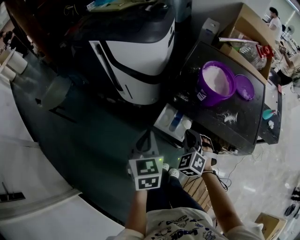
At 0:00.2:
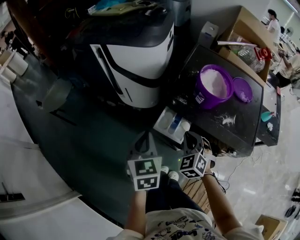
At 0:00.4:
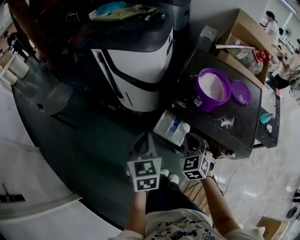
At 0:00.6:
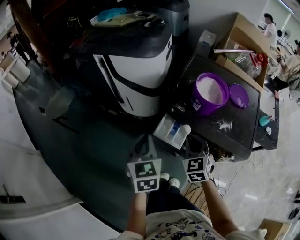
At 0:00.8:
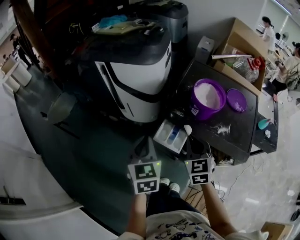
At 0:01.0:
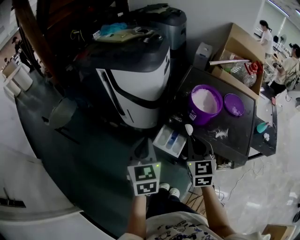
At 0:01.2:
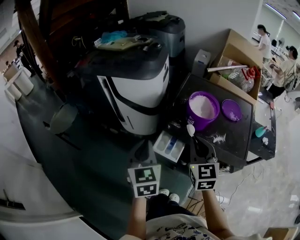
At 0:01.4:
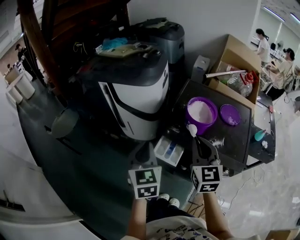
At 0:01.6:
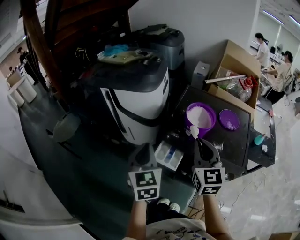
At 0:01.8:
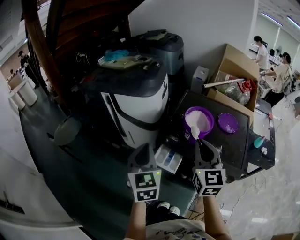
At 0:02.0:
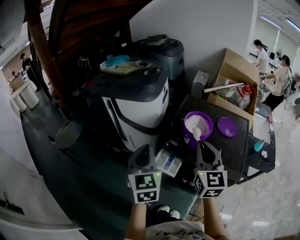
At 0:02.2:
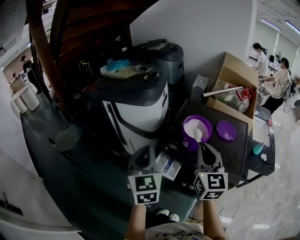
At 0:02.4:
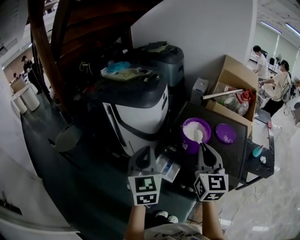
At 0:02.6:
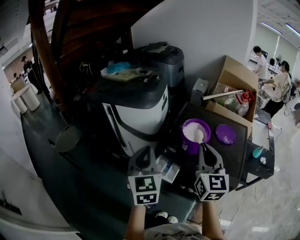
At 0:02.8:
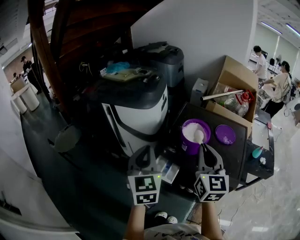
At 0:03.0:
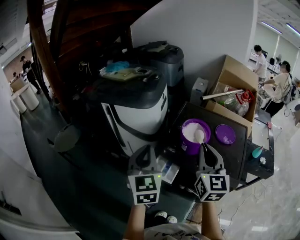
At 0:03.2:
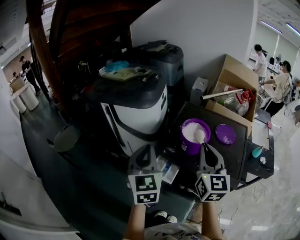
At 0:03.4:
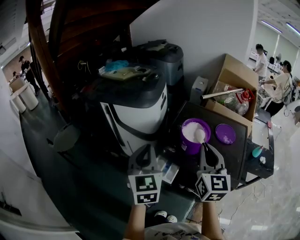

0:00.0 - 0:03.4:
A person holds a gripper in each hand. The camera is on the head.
0:00.0 - 0:01.6: The left gripper goes about 15 cm upward. The right gripper goes approximately 25 cm upward, and rolls clockwise, seen from behind, by roughly 50 degrees.
0:01.6 - 0:03.4: Both grippers move upward, about 5 cm.

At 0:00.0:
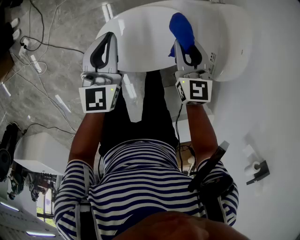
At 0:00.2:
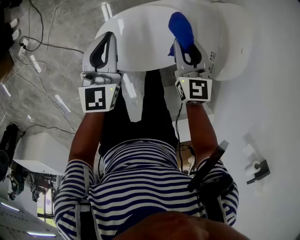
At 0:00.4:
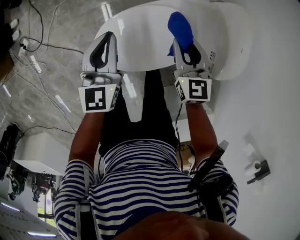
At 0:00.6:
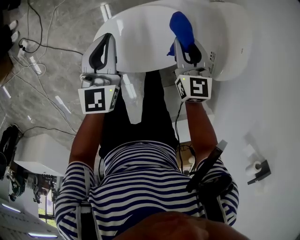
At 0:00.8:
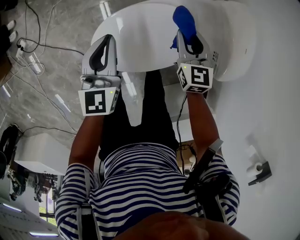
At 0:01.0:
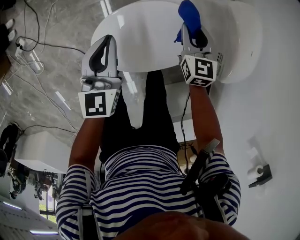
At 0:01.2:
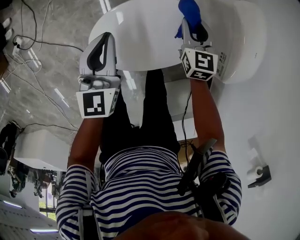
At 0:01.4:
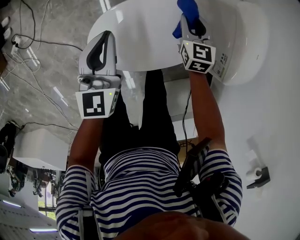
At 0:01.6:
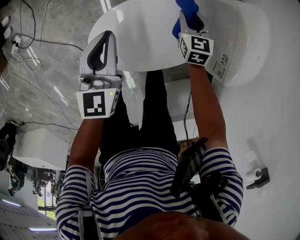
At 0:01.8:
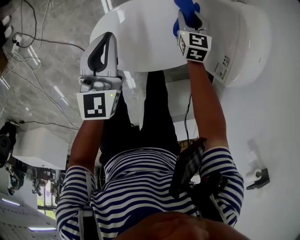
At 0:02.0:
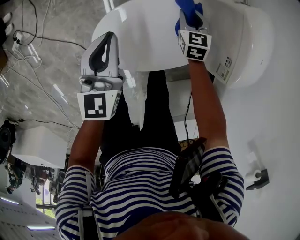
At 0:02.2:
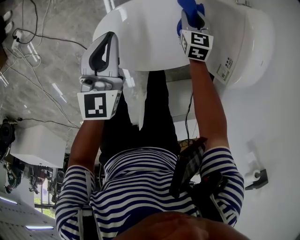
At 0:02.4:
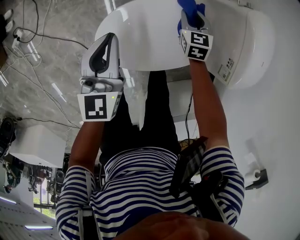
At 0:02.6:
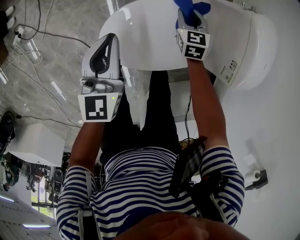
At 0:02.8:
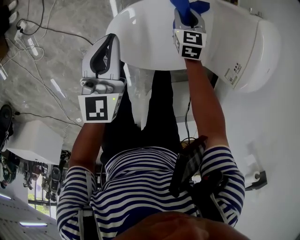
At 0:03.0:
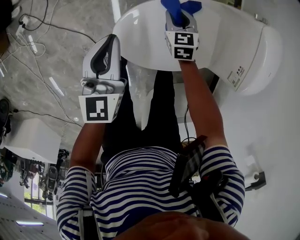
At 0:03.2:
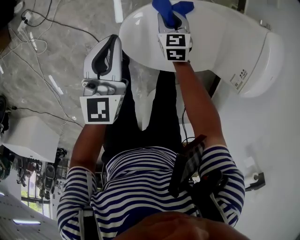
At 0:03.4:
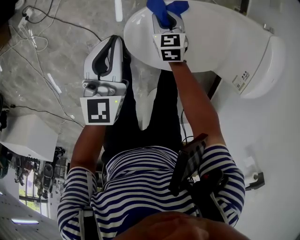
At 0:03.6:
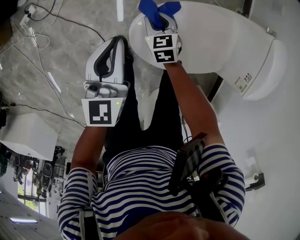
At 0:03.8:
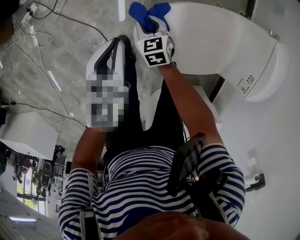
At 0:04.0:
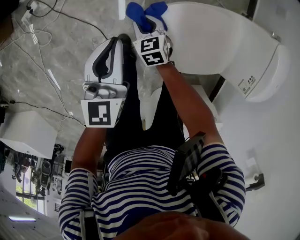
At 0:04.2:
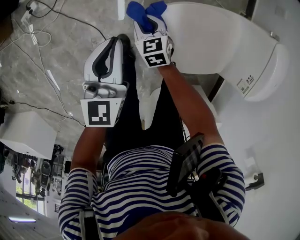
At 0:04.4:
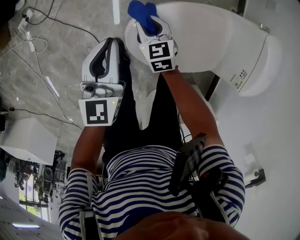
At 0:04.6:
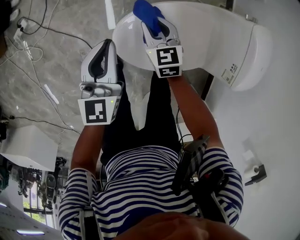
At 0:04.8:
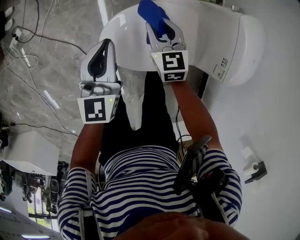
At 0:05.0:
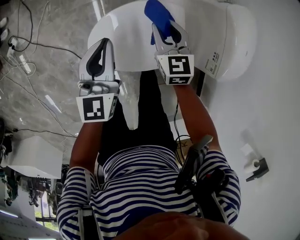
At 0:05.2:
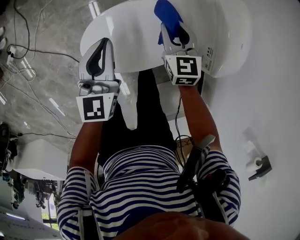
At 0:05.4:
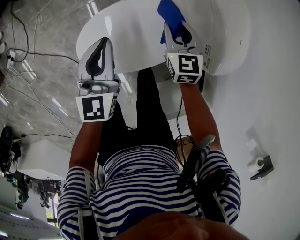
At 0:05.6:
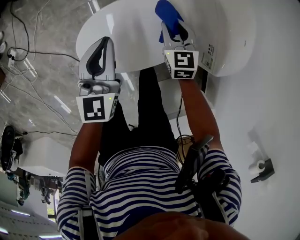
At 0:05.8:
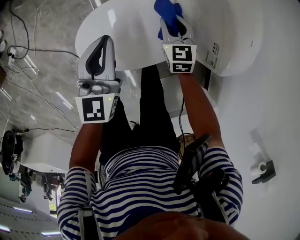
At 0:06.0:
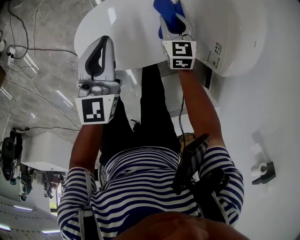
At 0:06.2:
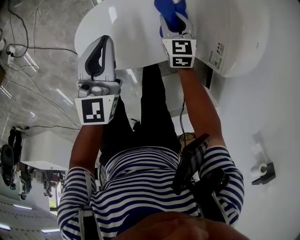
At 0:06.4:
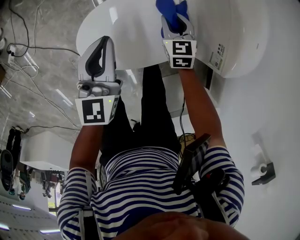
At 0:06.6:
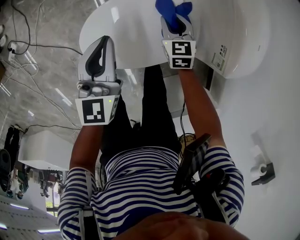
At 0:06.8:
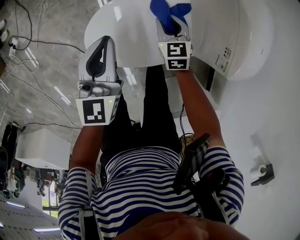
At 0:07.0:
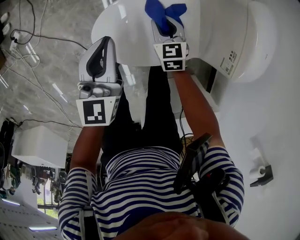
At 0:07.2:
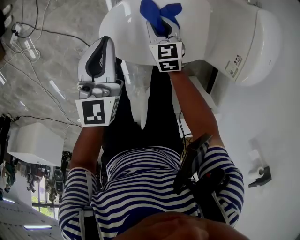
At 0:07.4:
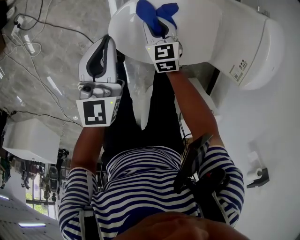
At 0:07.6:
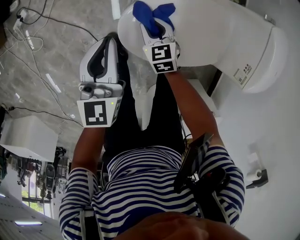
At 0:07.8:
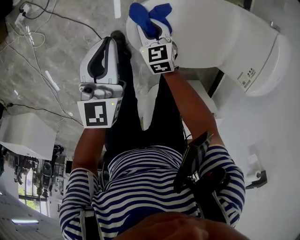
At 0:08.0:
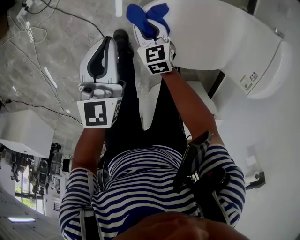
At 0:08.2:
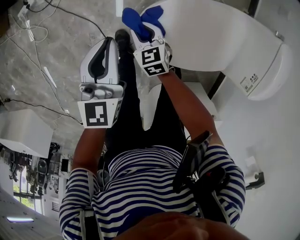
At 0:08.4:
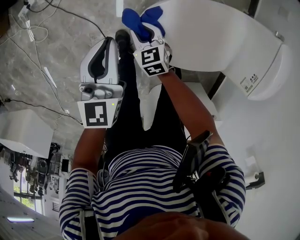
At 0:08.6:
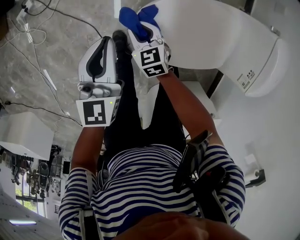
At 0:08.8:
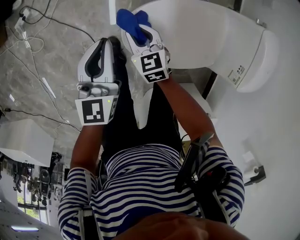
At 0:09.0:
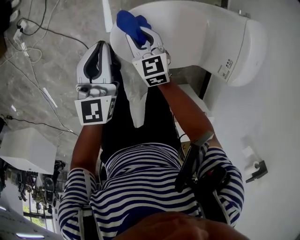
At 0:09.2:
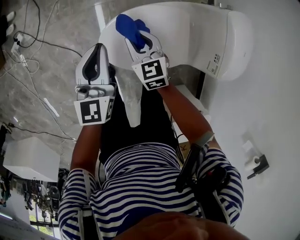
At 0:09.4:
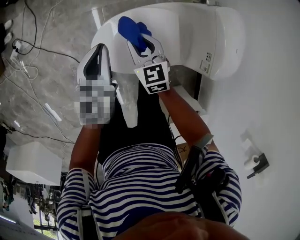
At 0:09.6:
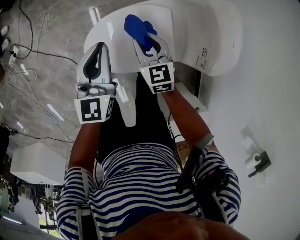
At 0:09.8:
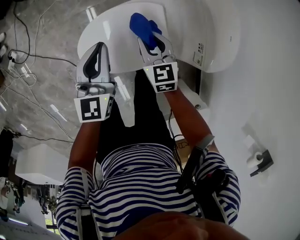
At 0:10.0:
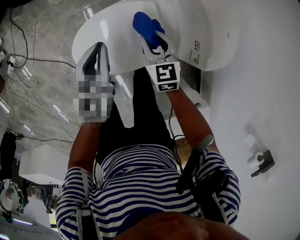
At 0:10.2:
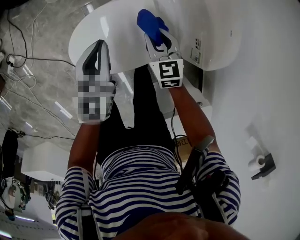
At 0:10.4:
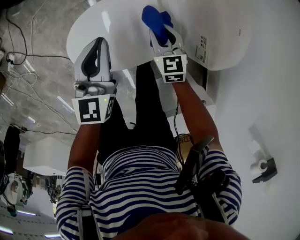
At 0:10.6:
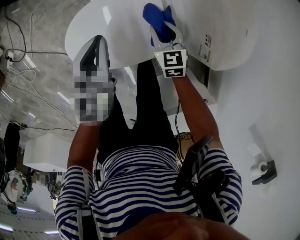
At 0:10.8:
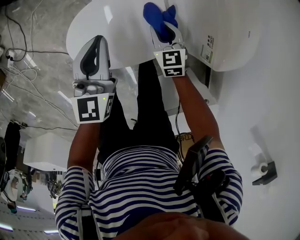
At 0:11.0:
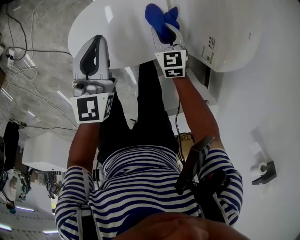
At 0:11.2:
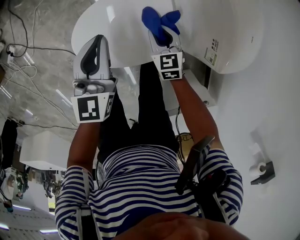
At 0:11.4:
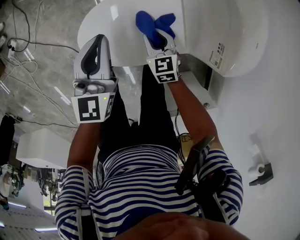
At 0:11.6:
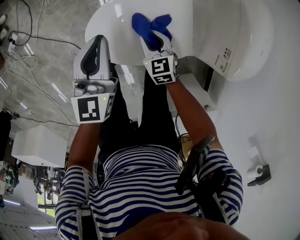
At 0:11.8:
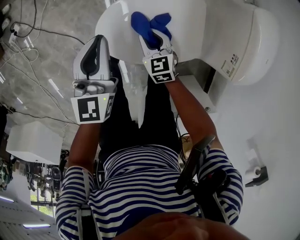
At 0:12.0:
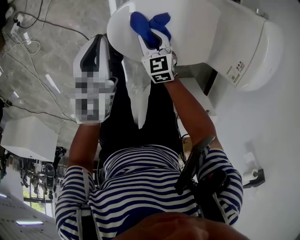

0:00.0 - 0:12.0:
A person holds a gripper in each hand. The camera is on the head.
0:00.0 - 0:01.6: The left gripper goes some 10 cm downward; the right gripper moves downward, approximately 20 cm.
0:01.6 - 0:03.0: The right gripper shifts some 20 cm to the left. Meanwhile the left gripper shifts approximately 10 cm to the left.
0:03.0 - 0:04.4: The left gripper heads to the left, covering roughly 10 cm. The right gripper is displaced to the left by approximately 20 cm.
0:04.4 - 0:06.0: The grippers both shift to the right by some 30 cm. The right gripper swivels some 20 degrees.
0:06.0 - 0:07.6: Both grippers move to the left, approximately 25 cm. The right gripper changes its angle by approximately 20 degrees.
0:07.6 - 0:09.0: The right gripper shifts roughly 10 cm upward. The left gripper goes some 5 cm upward, and moves roughly 10 cm to the left and comes back.
0:09.0 - 0:10.4: Both grippers travel together to the right, approximately 30 cm.
0:10.4 - 0:12.0: Both grippers move to the left, some 25 cm. The right gripper turns by roughly 20 degrees.

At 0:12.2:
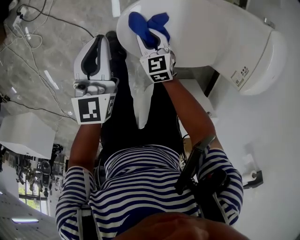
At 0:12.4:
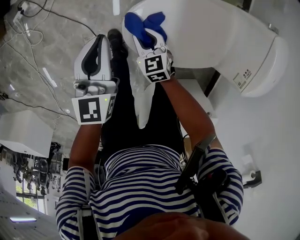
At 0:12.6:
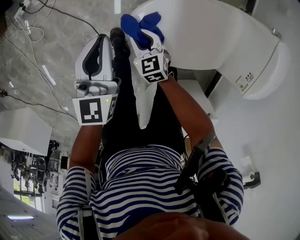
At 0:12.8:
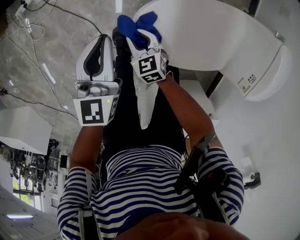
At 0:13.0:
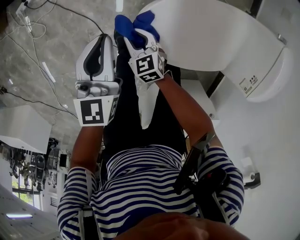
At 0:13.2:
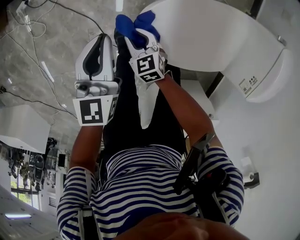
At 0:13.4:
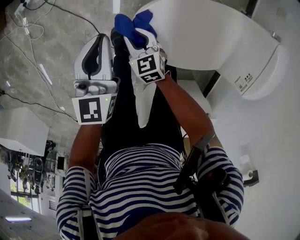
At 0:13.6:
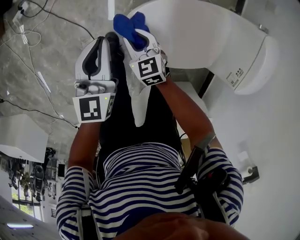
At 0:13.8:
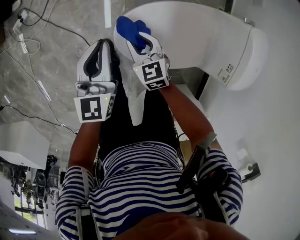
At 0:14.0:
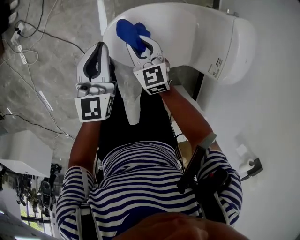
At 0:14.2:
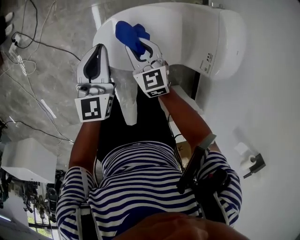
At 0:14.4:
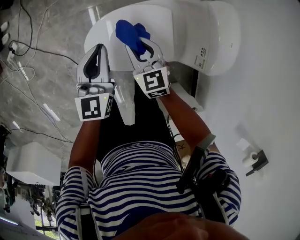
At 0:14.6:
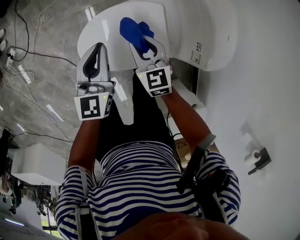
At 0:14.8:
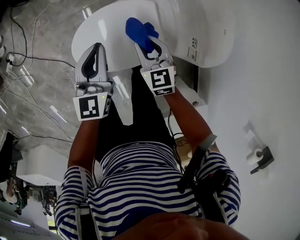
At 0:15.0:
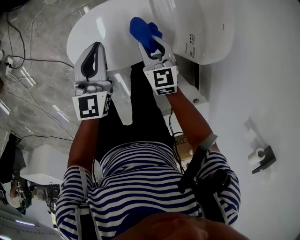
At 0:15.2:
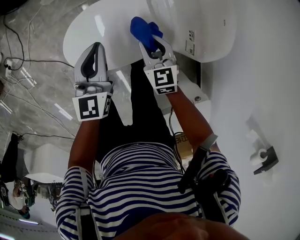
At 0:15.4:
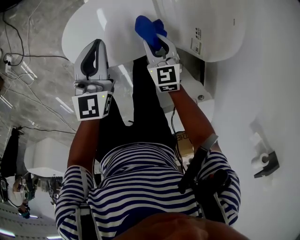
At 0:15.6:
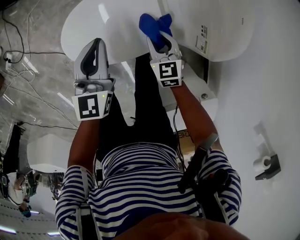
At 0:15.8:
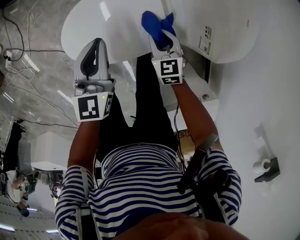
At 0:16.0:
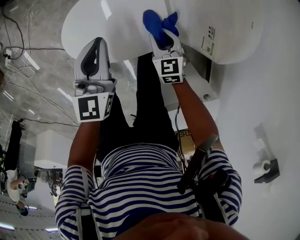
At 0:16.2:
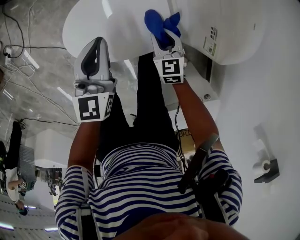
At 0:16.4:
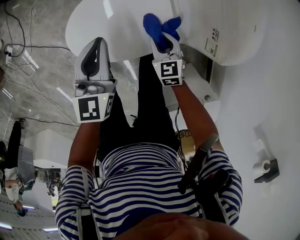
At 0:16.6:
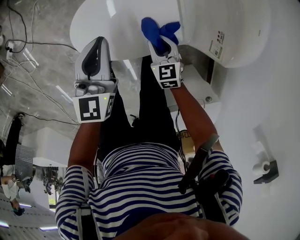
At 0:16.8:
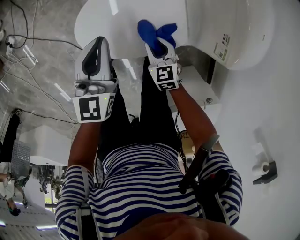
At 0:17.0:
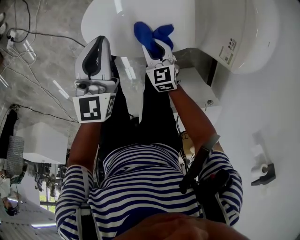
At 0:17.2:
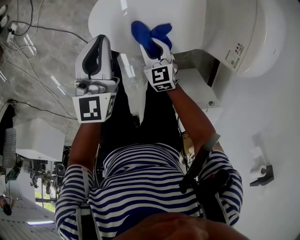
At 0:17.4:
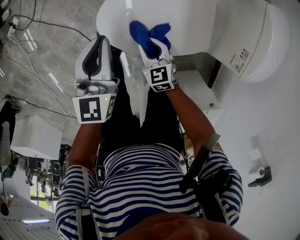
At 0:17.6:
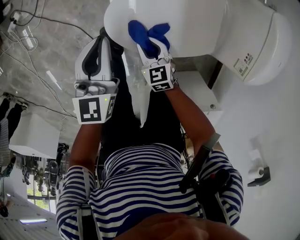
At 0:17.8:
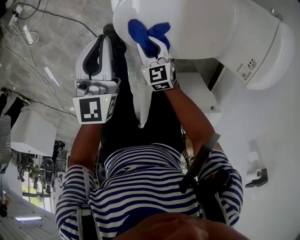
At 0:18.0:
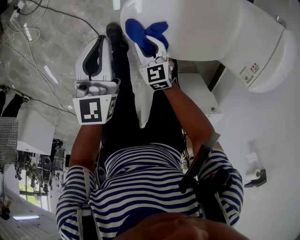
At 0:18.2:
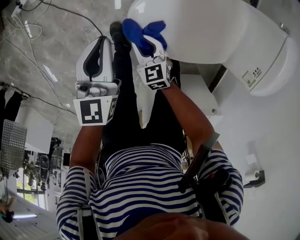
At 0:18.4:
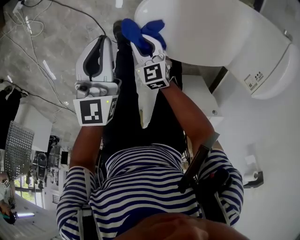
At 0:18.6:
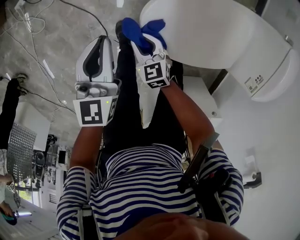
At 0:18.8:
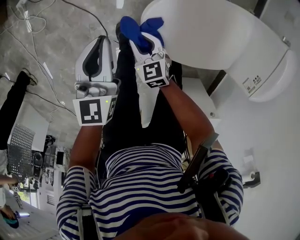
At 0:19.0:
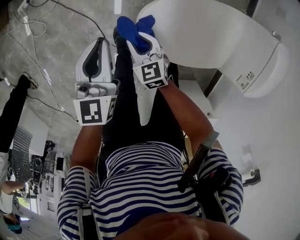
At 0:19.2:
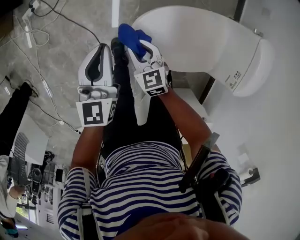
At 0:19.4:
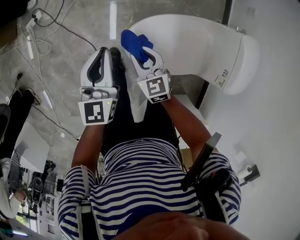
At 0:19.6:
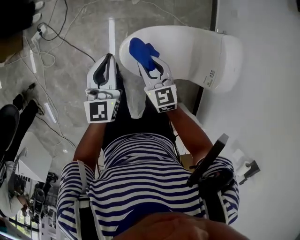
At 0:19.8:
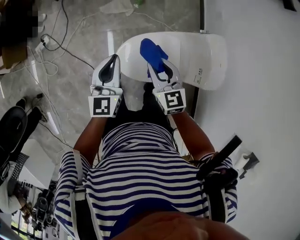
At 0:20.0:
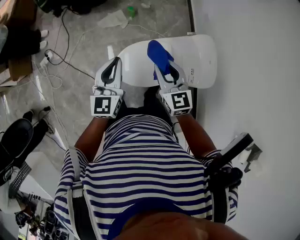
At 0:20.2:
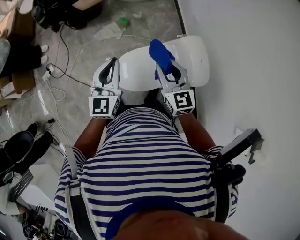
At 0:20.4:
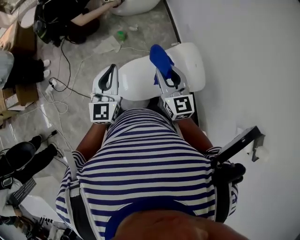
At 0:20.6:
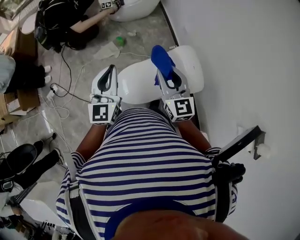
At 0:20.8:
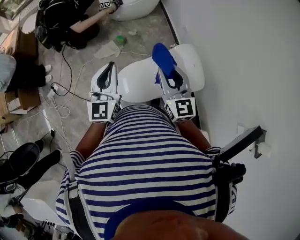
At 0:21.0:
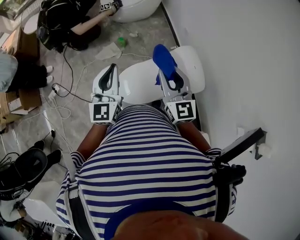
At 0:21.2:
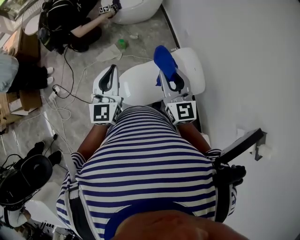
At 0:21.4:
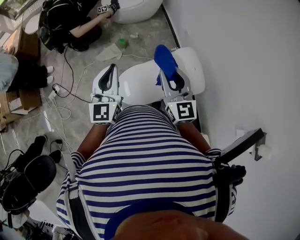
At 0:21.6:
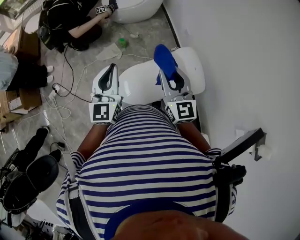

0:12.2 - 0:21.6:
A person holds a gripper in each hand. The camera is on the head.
0:12.2 - 0:13.8: The right gripper moves upward, roughly 10 cm, and goes to the left and returns, approximately 15 cm each way. The left gripper moves approximately 10 cm to the left and comes back.
0:13.8 - 0:15.4: The grippers both shift to the right by about 30 cm. The right gripper turns by roughly 20 degrees.
0:15.4 - 0:17.0: The left gripper shifts approximately 10 cm to the left, while the right gripper heads to the left, downward and backward, covering approximately 15 cm.
0:17.0 - 0:18.4: Both grippers travel together to the left, approximately 25 cm.
0:18.4 - 0:20.0: Both grippers travel together upward and to the right, approximately 50 cm. The left gripper rotates approximately 20 degrees. The right gripper changes its angle by roughly 30 degrees.
0:20.0 - 0:21.6: The two grippers go some 15 cm upward. The right gripper changes its angle by some 20 degrees.
